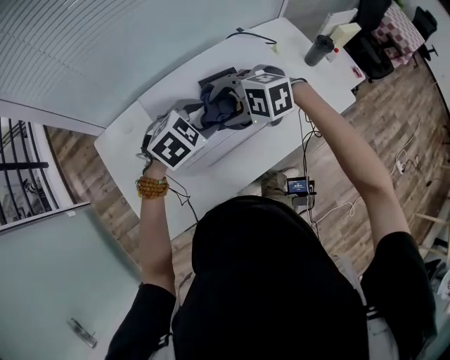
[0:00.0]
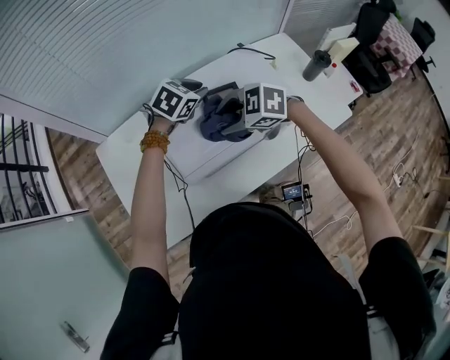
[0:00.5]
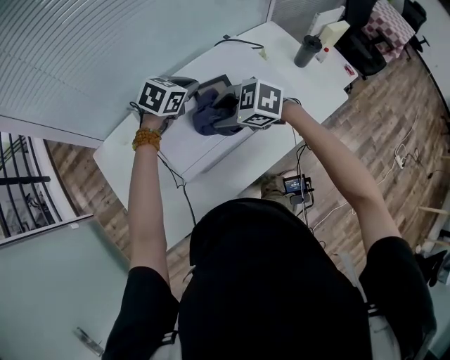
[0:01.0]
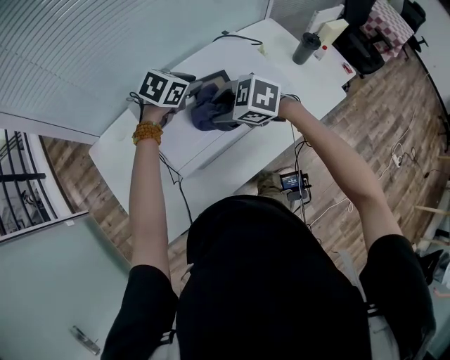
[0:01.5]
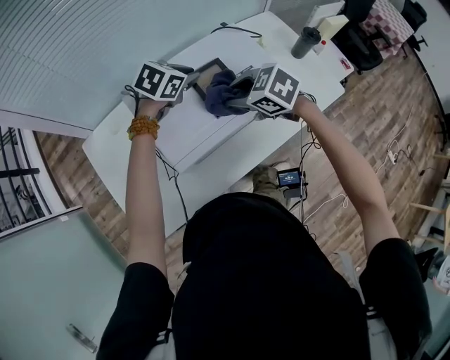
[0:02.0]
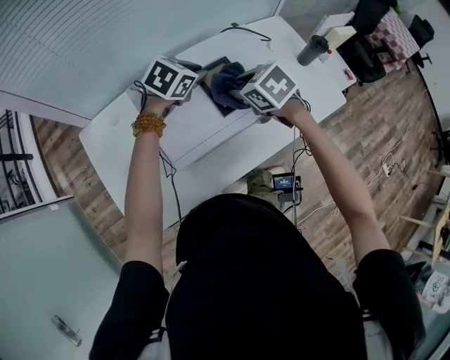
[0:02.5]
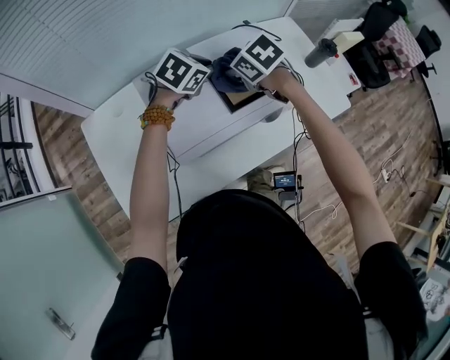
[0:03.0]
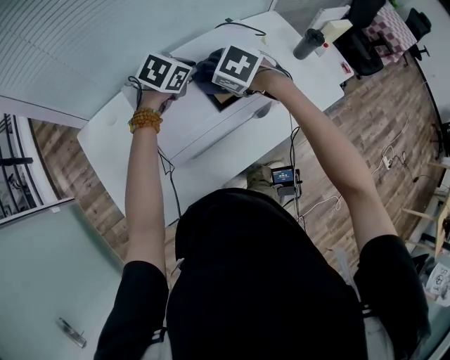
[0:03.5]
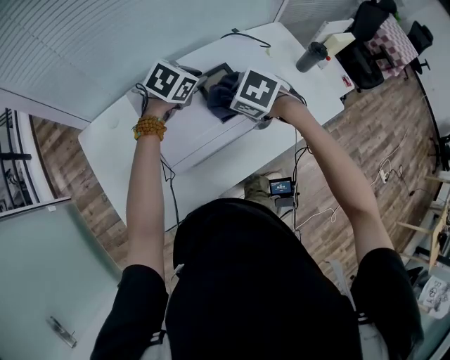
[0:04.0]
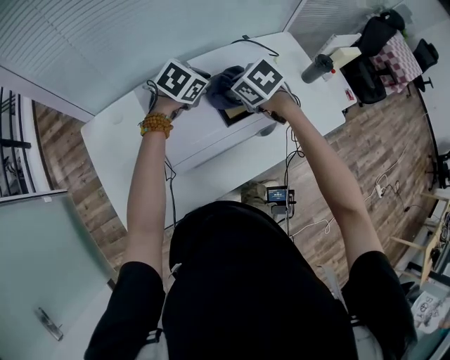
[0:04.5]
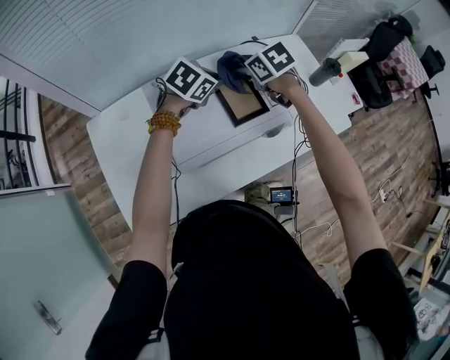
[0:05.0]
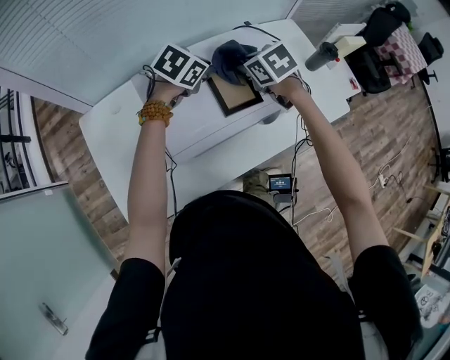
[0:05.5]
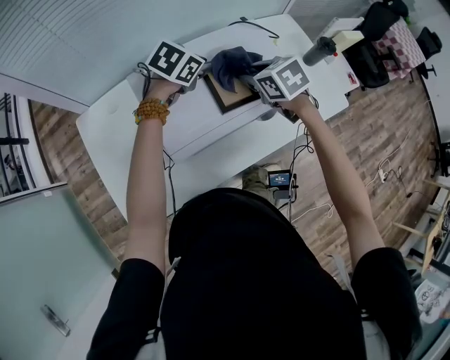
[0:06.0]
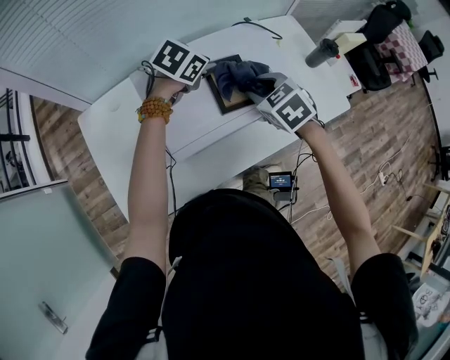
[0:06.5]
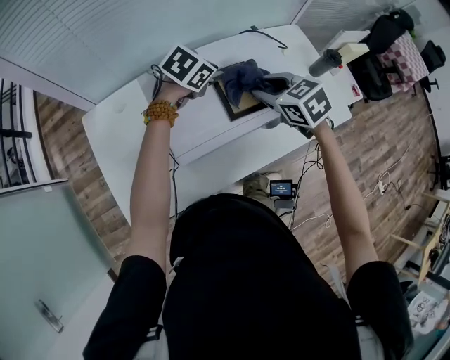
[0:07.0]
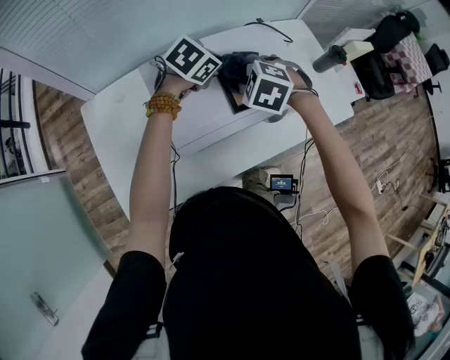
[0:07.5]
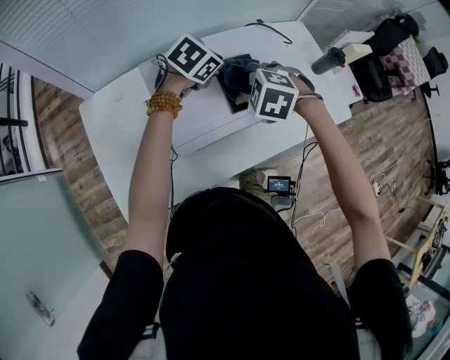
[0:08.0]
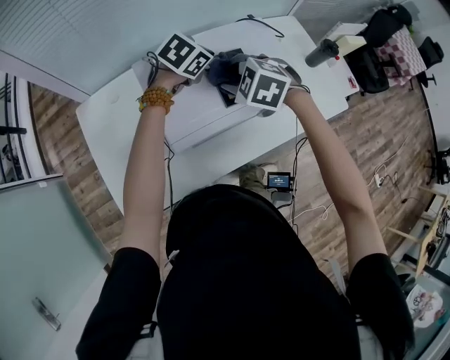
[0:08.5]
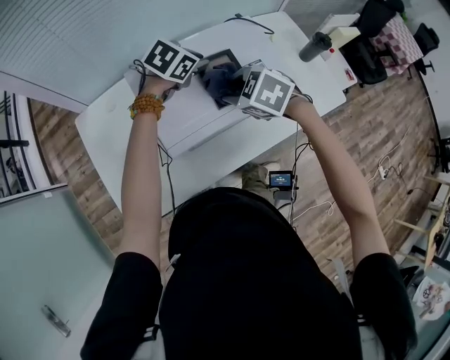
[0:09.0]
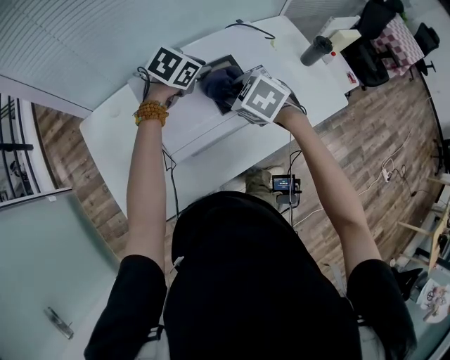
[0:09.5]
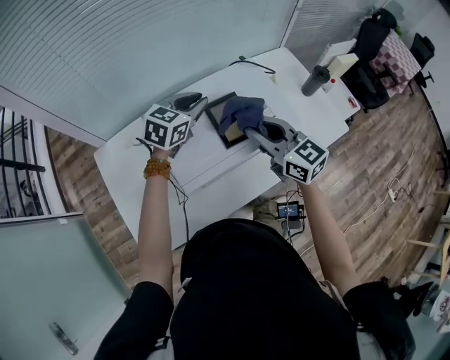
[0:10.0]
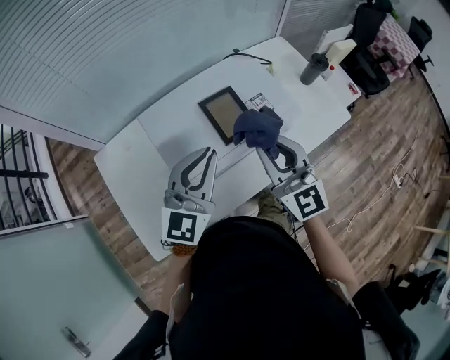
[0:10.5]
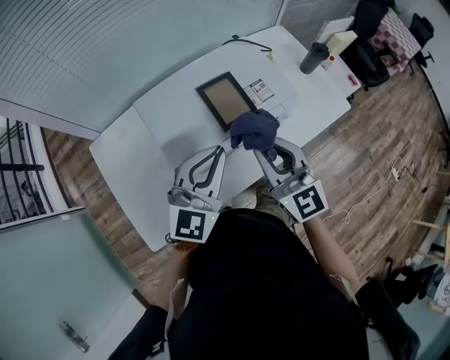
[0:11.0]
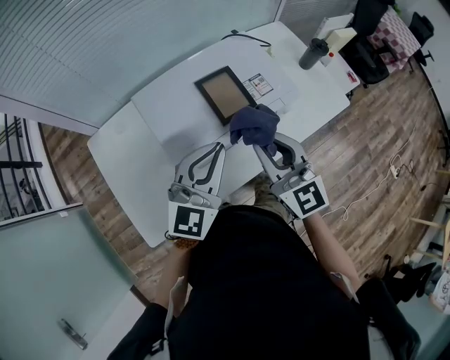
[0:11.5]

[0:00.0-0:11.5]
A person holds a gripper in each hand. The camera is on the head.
0:00.0 to 0:02.0: The left gripper moves some 10 cm, swivels some 20 degrees, and closes; the right gripper moves roughly 10 cm, twists about 50 degrees clockwise, seen from behind, and closes up.
0:04.0 to 0:06.0: The right gripper travels forward by about 5 cm, and turns by approximately 30 degrees.
0:06.0 to 0:07.5: The right gripper heads to the left, covering about 5 cm, and twists some 50 degrees counterclockwise, seen from behind.
0:07.5 to 0:09.5: The right gripper changes its angle by some 30 degrees.
0:09.5 to 0:11.5: The right gripper moves backward, upward and to the right, about 15 cm, and tilts its fingers roughly 60 degrees upward, while the left gripper moves backward and upward, roughly 25 cm, and points its fingers roughly 40 degrees further upward.

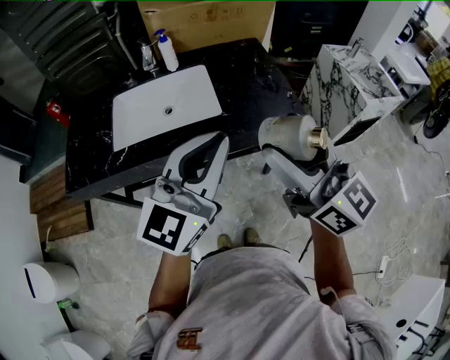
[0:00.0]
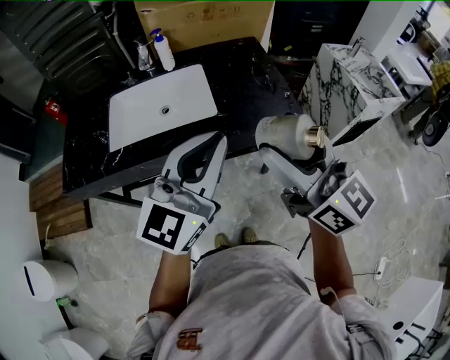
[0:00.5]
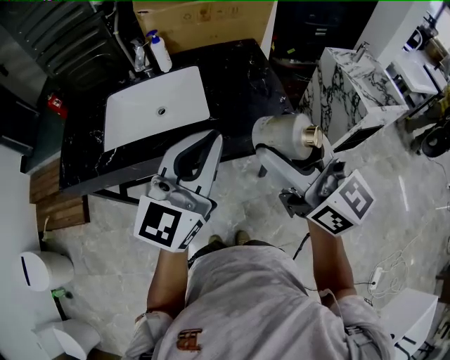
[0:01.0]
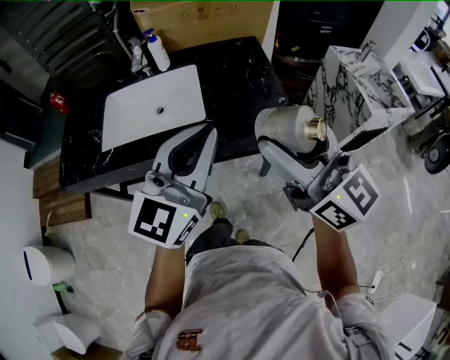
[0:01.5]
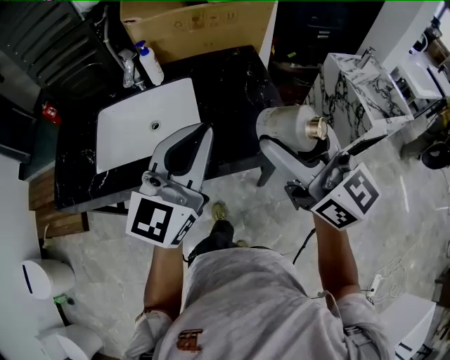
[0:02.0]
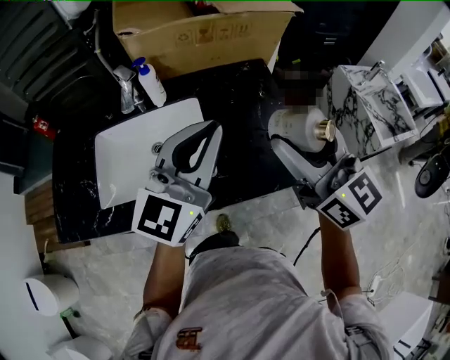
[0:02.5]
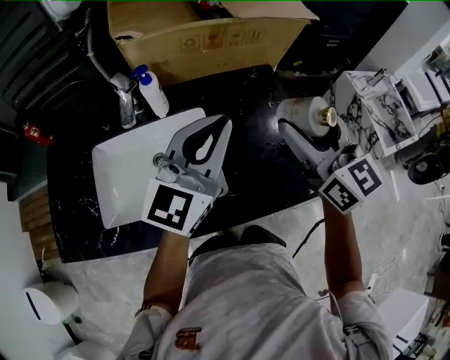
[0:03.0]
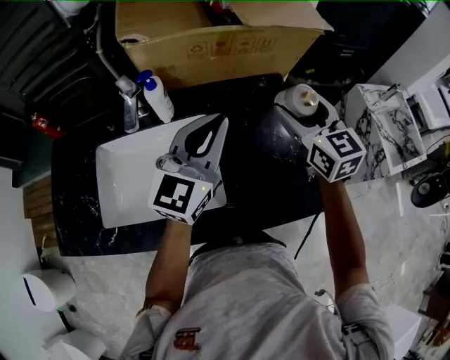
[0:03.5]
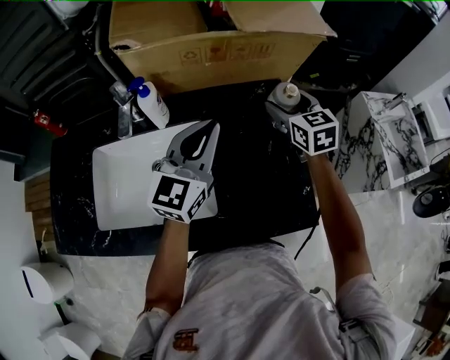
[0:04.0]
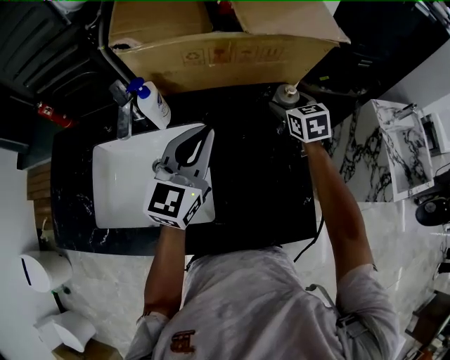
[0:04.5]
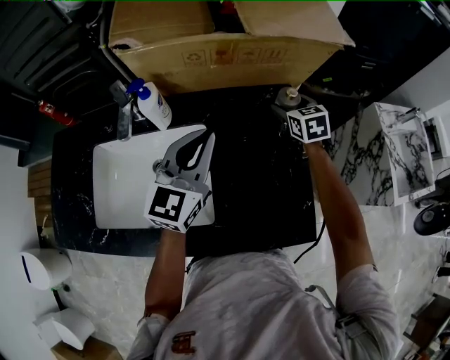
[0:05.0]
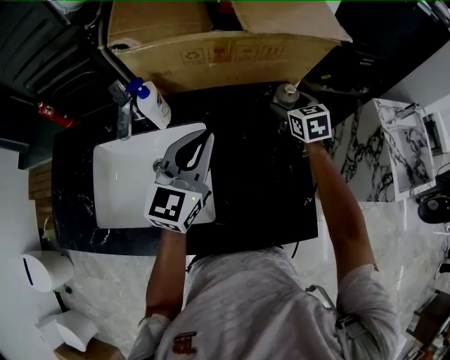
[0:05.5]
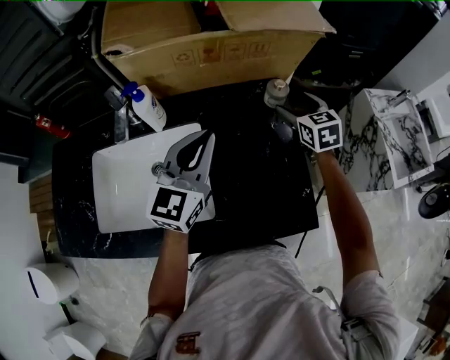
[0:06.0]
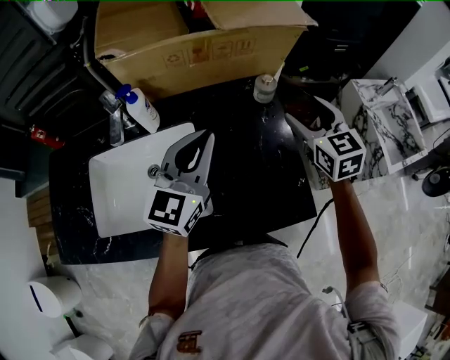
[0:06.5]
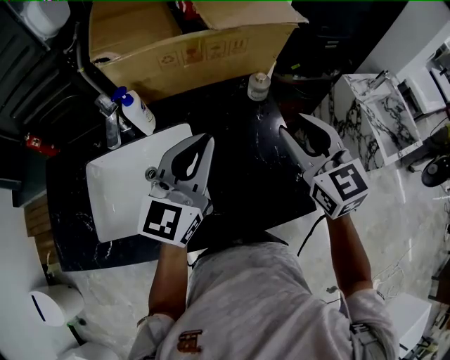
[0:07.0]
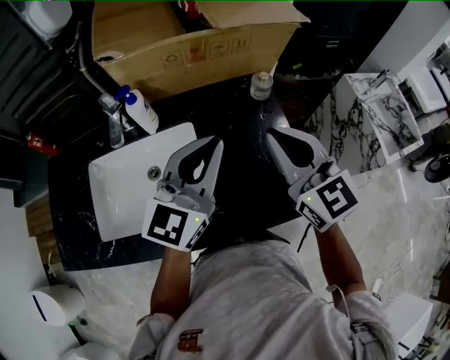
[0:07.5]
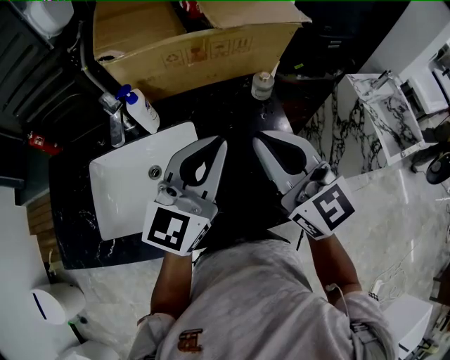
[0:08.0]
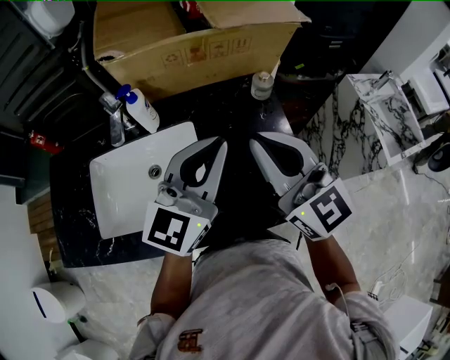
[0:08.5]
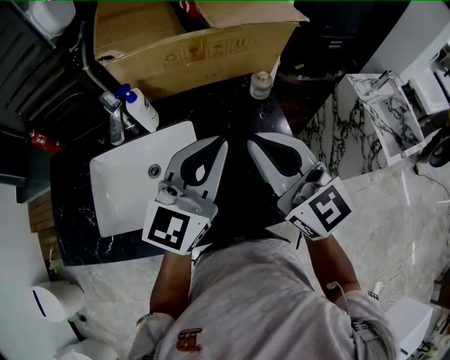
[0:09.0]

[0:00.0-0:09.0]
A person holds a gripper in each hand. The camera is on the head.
0:00.0 to 0:02.0: The two grippers go roughly 15 cm forward and to the right.
0:02.0 to 0:04.5: The right gripper travels forward and downward by roughly 60 cm, and angles its fingers downward, by about 40 degrees. Meanwhile the left gripper heads forward, covering roughly 30 cm.
0:04.5 to 0:07.0: The right gripper travels backward and upward by approximately 30 cm, turns by roughly 20 degrees, and closes up, while the left gripper goes roughly 10 cm backward and upward.
0:07.0 to 0:09.0: The right gripper travels to the left and backward by about 10 cm, rotates approximately 20 degrees, and closes up.

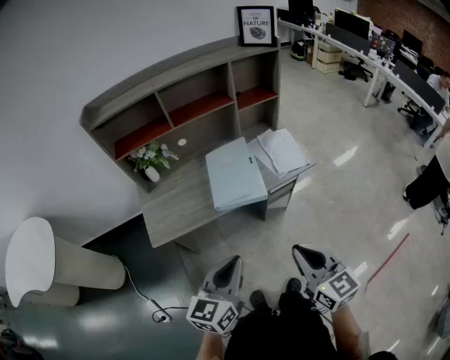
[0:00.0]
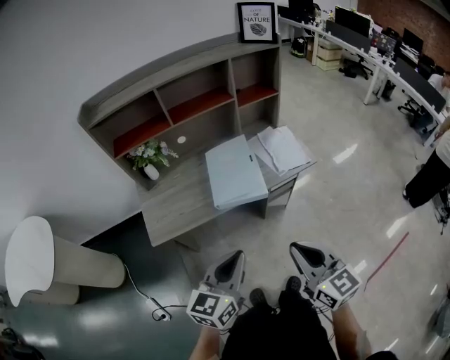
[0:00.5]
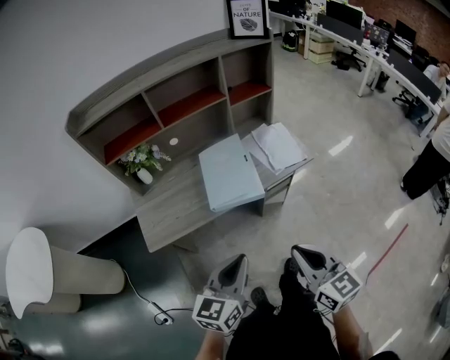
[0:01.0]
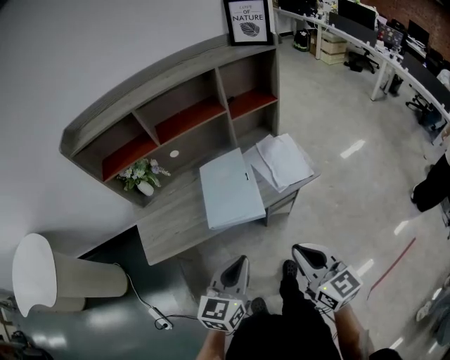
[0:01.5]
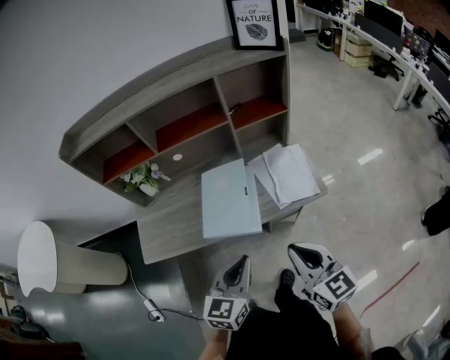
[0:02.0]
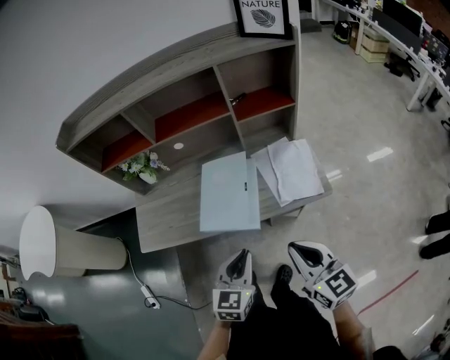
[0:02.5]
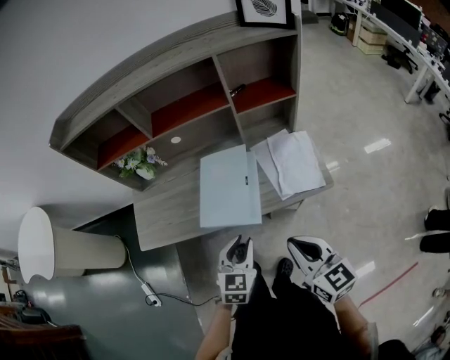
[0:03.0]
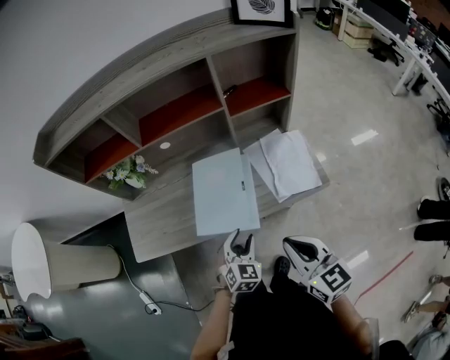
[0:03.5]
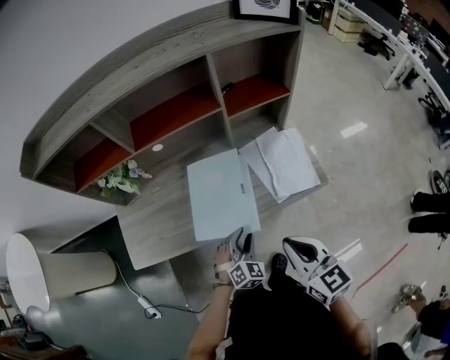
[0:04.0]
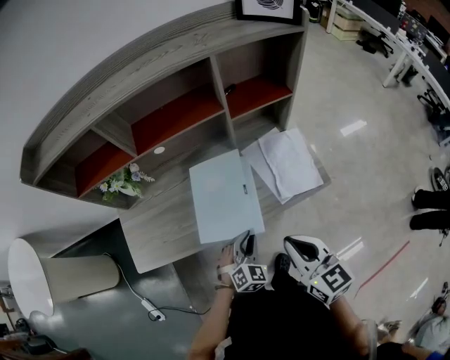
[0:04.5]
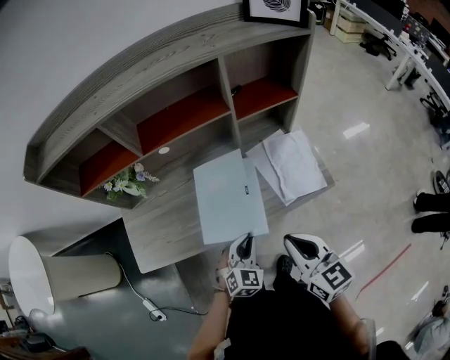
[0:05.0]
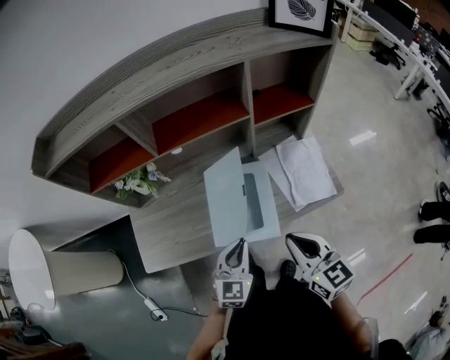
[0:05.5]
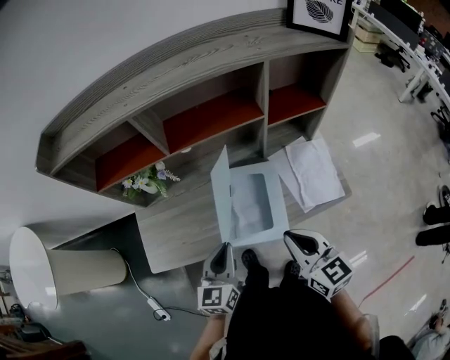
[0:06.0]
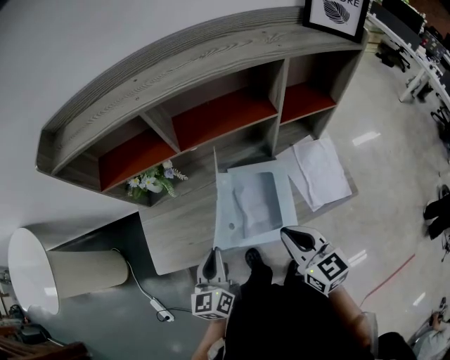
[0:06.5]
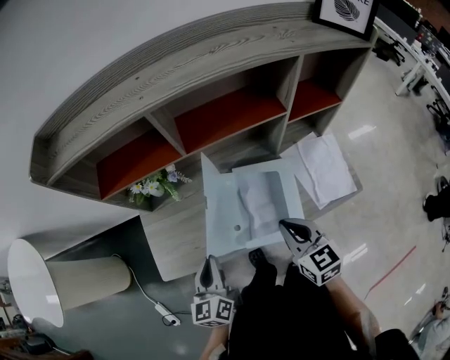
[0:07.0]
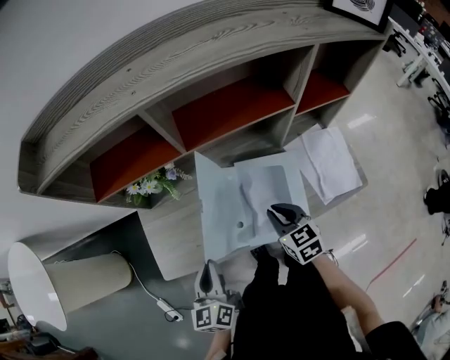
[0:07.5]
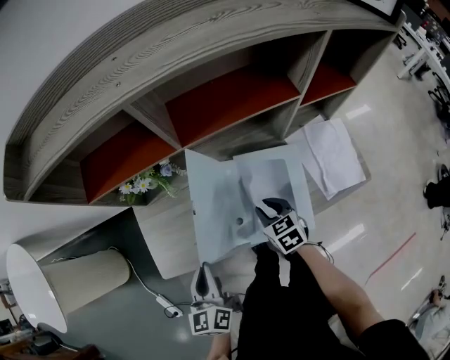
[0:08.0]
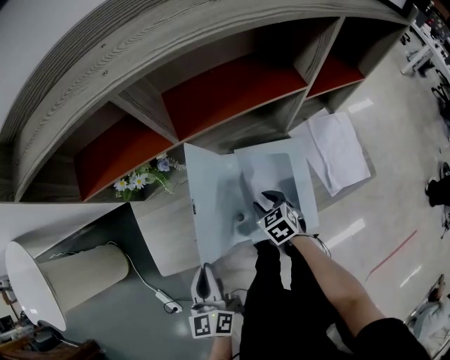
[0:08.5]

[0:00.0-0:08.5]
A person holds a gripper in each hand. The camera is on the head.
0:00.0 to 0:02.0: Both grippers move forward and to the right, roughly 20 cm.
0:02.0 to 0:04.0: The right gripper is displaced forward and downward by some 10 cm, while the left gripper is displaced downward and forward by about 25 cm, rotates around the line of its fingers by some 40 degrees, clockwise from behind, and opens its fingers.
0:04.0 to 0:06.5: The right gripper goes approximately 15 cm to the left and forward; the left gripper heads to the left and upward, covering some 25 cm, twists some 60 degrees counterclockwise, seen from behind, and closes up.
0:06.5 to 0:08.5: The left gripper goes approximately 10 cm to the left; the right gripper is displaced downward and forward by some 30 cm, points its fingers about 40 degrees further downward, and opens its fingers.
